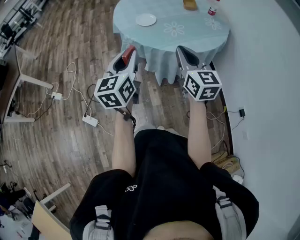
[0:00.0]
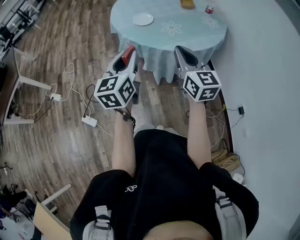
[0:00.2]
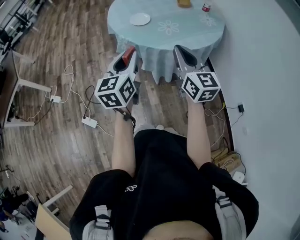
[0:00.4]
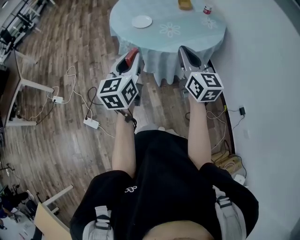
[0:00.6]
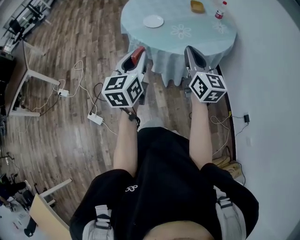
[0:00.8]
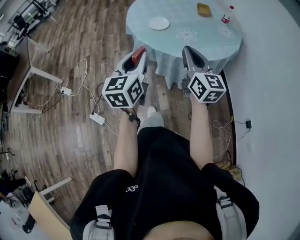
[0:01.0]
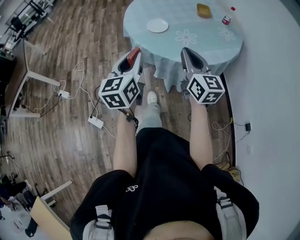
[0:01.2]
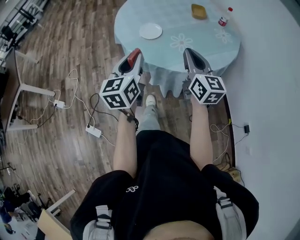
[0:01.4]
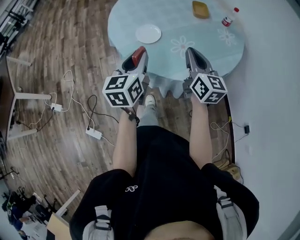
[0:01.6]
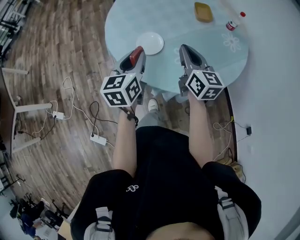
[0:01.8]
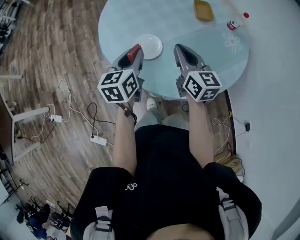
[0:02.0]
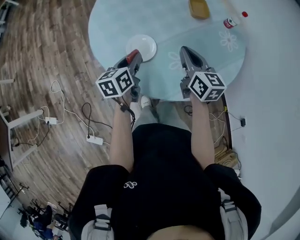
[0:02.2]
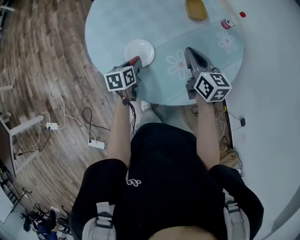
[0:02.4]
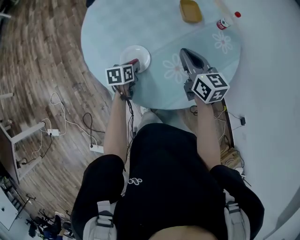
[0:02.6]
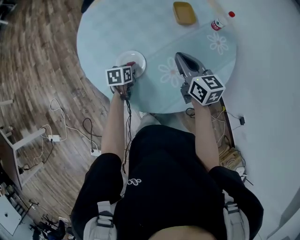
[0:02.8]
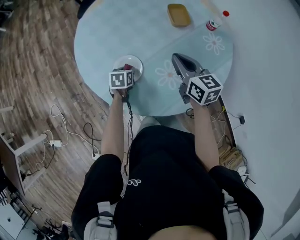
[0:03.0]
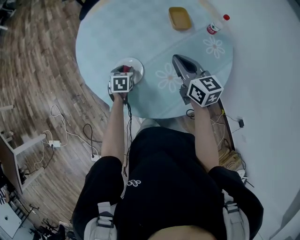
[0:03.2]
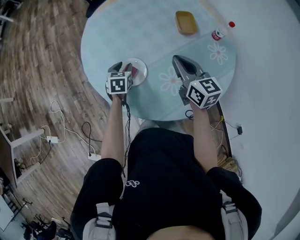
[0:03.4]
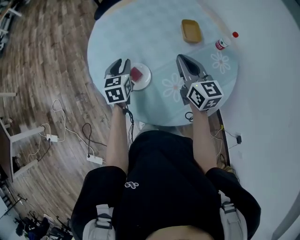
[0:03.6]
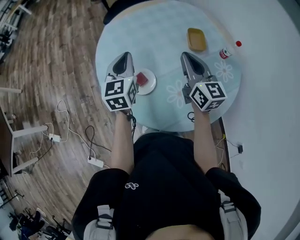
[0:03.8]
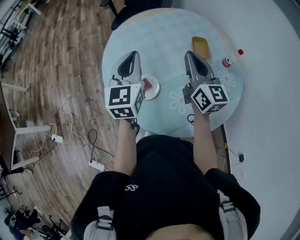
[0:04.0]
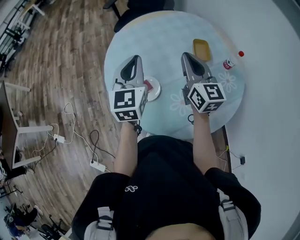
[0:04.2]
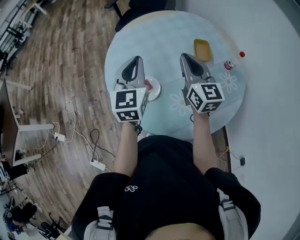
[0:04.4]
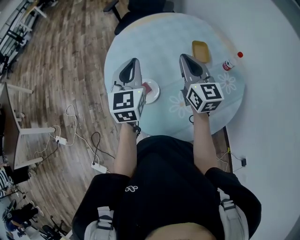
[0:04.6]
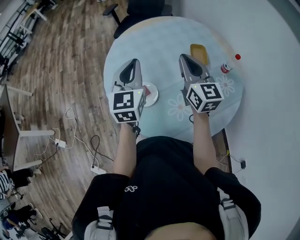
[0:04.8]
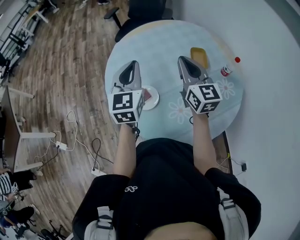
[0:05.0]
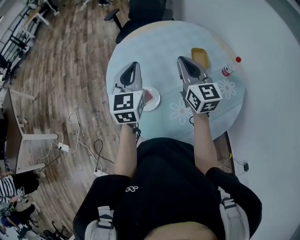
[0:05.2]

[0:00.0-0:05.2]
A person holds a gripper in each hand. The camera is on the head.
0:00.0 to 0:01.8: Both grippers travel together forward, approximately 40 cm.
0:01.8 to 0:03.4: The right gripper goes some 15 cm forward; the left gripper heads forward and downward, covering about 30 cm, and changes its angle by approximately 30 degrees.
0:03.4 to 0:05.2: The left gripper travels upward by roughly 30 cm, angles its fingers upward, by some 40 degrees, and closes up, while the right gripper goes approximately 15 cm upward and forward.

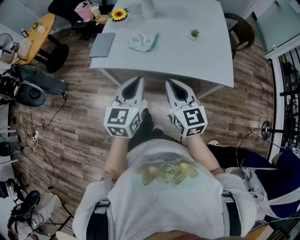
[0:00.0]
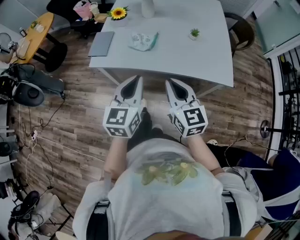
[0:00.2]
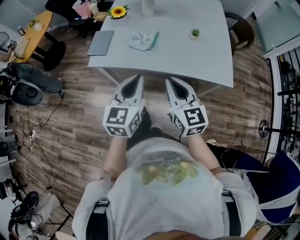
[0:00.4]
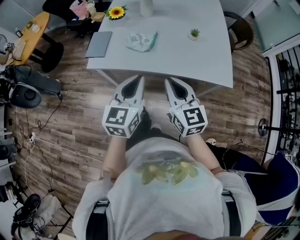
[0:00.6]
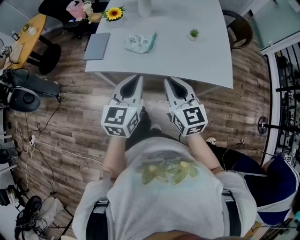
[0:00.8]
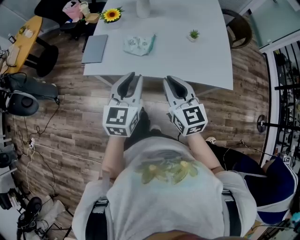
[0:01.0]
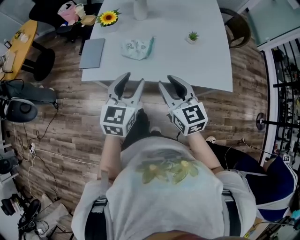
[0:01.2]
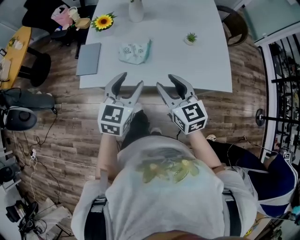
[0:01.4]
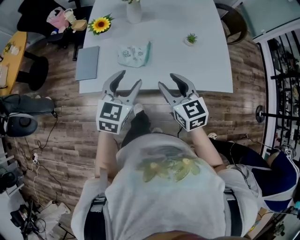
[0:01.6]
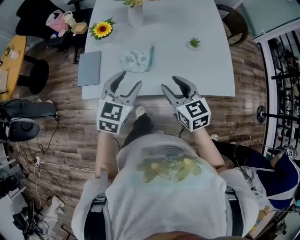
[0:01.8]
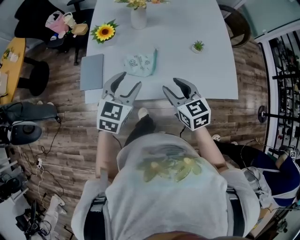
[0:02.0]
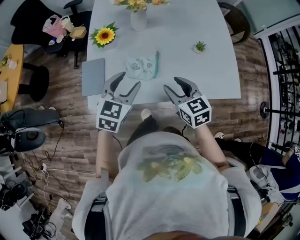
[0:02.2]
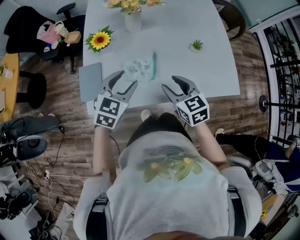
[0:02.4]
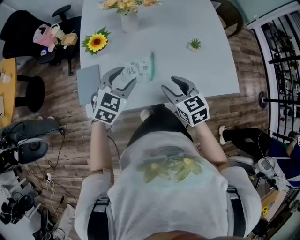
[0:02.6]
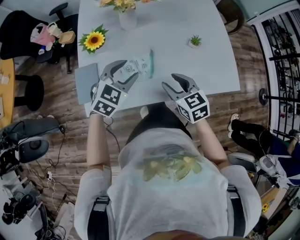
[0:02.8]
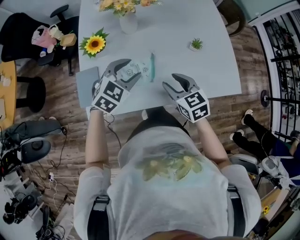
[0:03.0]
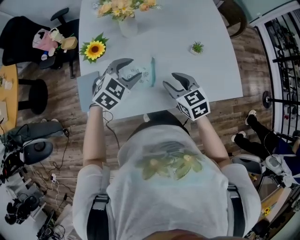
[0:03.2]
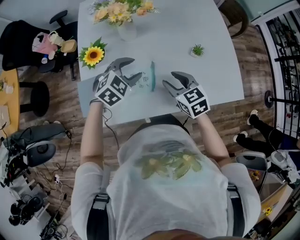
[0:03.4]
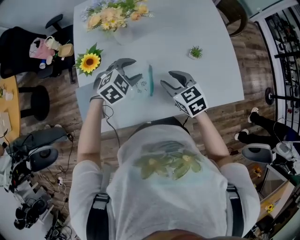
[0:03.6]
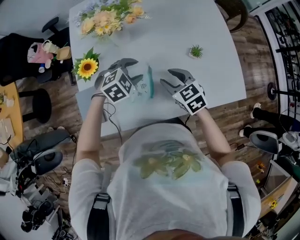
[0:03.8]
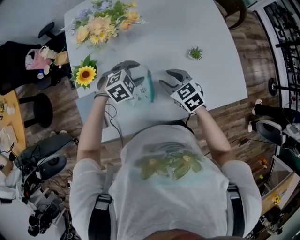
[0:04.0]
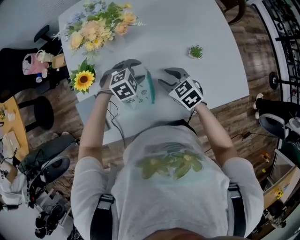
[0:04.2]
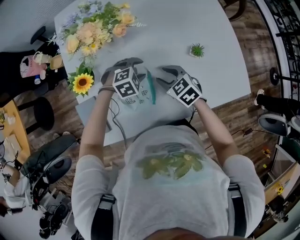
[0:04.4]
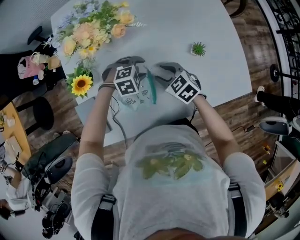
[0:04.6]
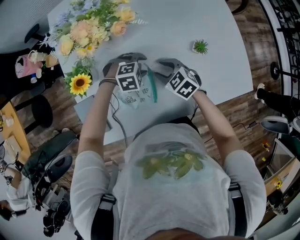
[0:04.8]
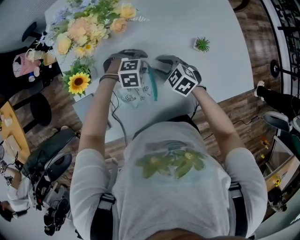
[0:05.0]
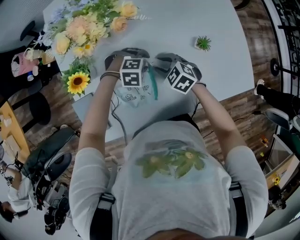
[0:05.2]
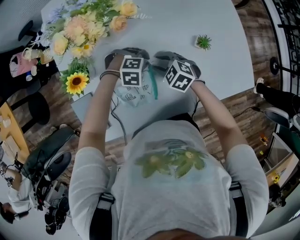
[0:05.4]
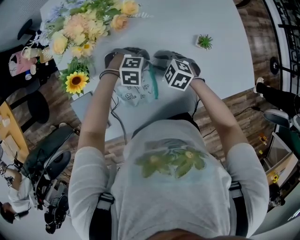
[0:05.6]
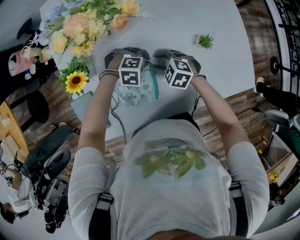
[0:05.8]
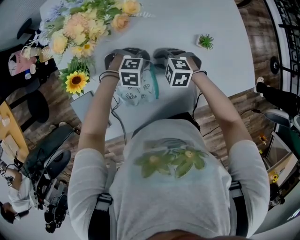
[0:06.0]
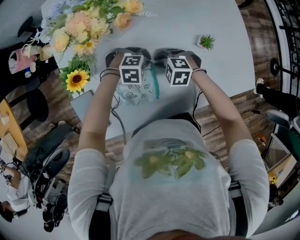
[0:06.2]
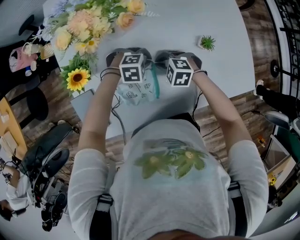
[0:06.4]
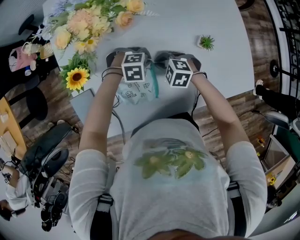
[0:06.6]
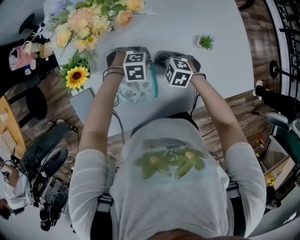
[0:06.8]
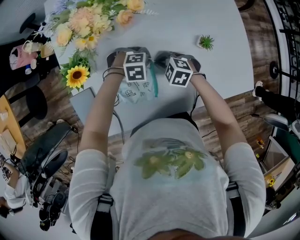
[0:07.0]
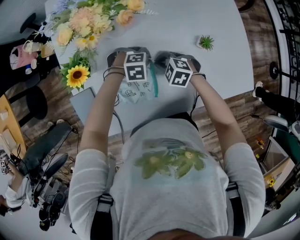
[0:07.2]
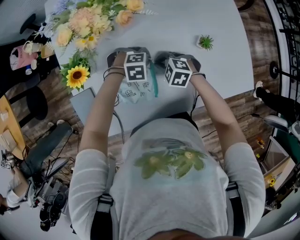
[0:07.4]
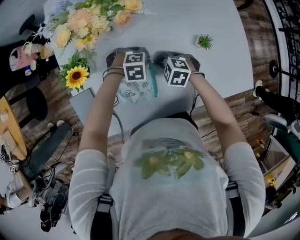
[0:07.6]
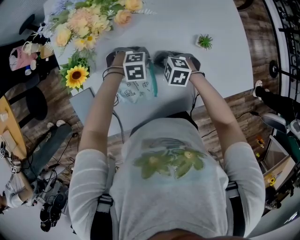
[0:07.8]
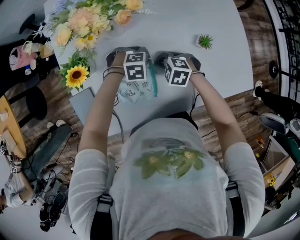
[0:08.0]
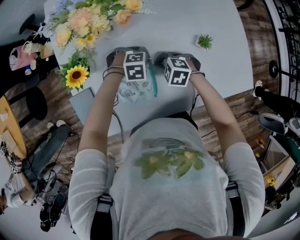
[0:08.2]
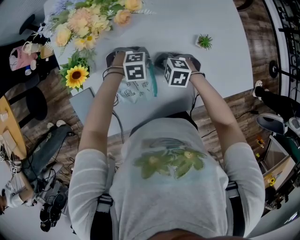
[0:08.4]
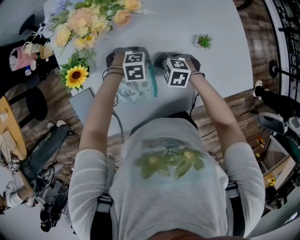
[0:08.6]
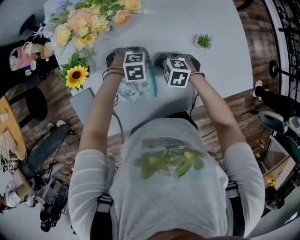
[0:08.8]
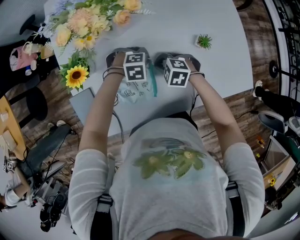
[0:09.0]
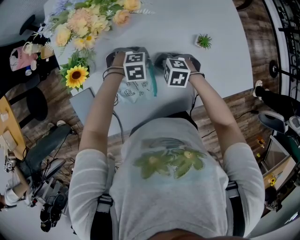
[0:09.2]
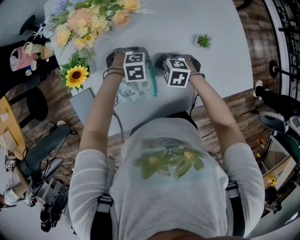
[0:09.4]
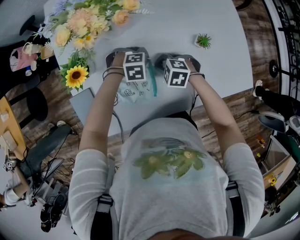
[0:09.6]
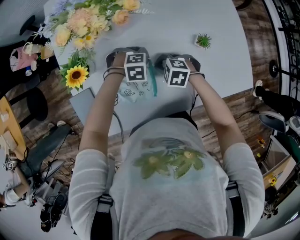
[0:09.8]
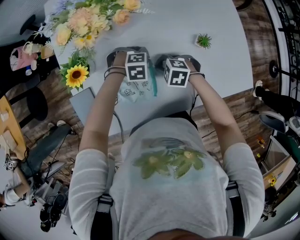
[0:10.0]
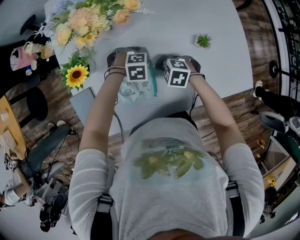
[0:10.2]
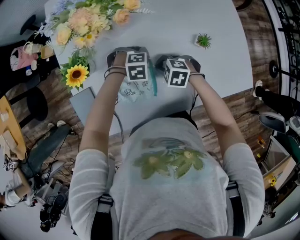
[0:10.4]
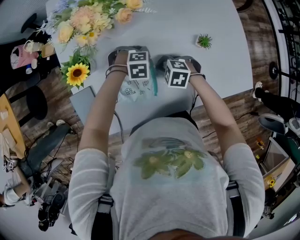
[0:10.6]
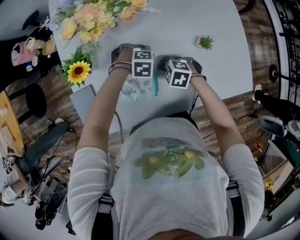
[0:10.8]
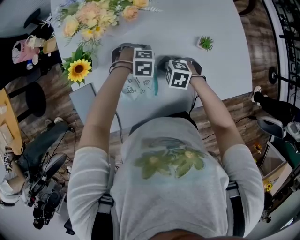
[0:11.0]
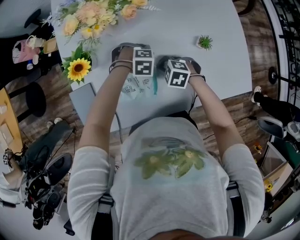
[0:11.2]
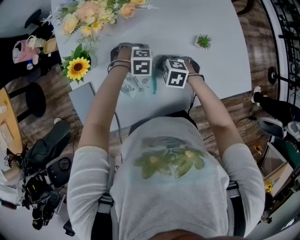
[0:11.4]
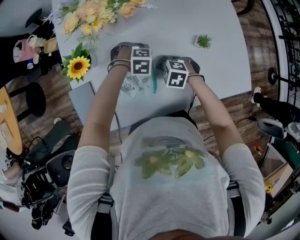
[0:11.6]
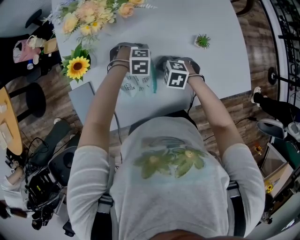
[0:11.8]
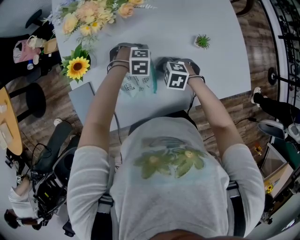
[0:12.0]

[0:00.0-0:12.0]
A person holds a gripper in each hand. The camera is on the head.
0:00.0 to 0:01.6: The grippers both shift forward by approximately 15 cm. The right gripper opens. The left gripper swivels approximately 20 degrees, and opens up.
0:01.6 to 0:03.0: The left gripper heads forward, covering about 15 cm, and turns by roughly 30 degrees. Meanwhile the right gripper heads forward and downward, covering approximately 15 cm.
0:03.0 to 0:04.4: The left gripper moves downward and forward, some 20 cm, and changes its angle by some 40 degrees. Meanwhile the right gripper goes some 15 cm forward and downward.
0:04.4 to 0:06.0: Both grippers move downward, roughly 5 cm. The right gripper turns by roughly 40 degrees, while the left gripper rotates approximately 20 degrees, and closes up.
0:06.0 to 0:07.6: The right gripper closes up.
0:07.6 to 0:09.0: The two grippers keep their place.
0:09.0 to 0:10.4: The two grippers keep their place.
0:10.4 to 0:12.0: The grippers move only a little.

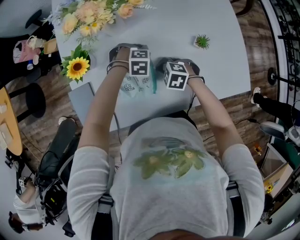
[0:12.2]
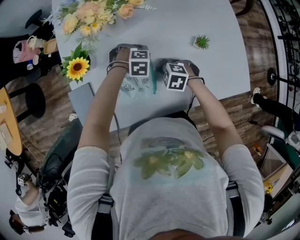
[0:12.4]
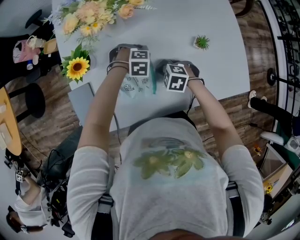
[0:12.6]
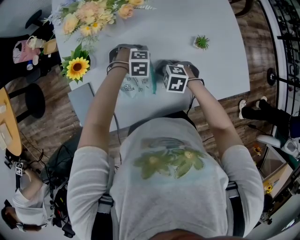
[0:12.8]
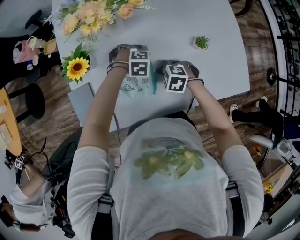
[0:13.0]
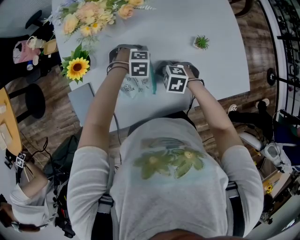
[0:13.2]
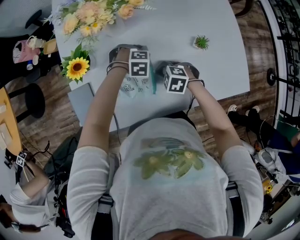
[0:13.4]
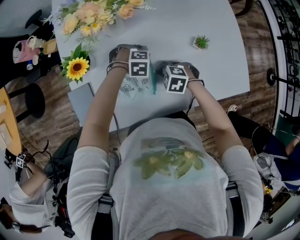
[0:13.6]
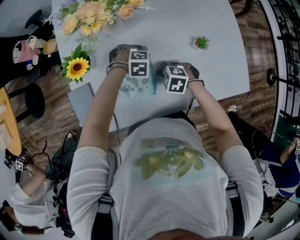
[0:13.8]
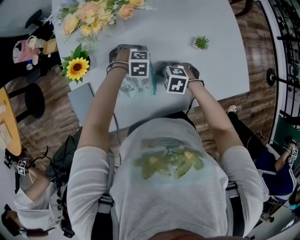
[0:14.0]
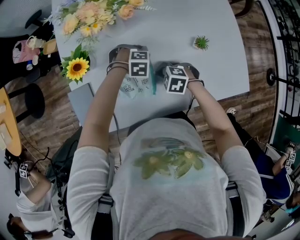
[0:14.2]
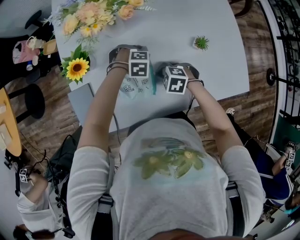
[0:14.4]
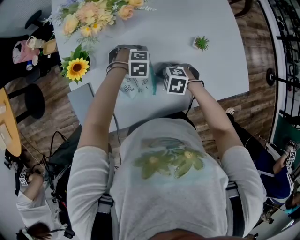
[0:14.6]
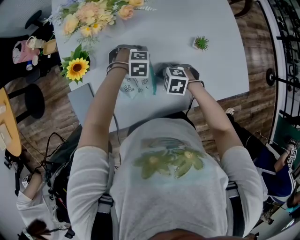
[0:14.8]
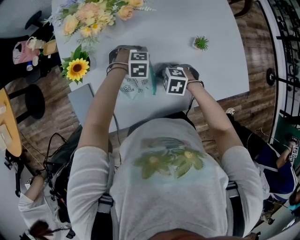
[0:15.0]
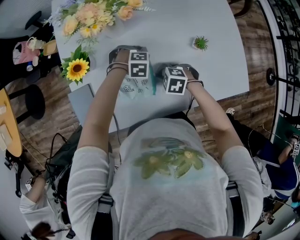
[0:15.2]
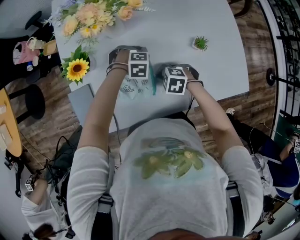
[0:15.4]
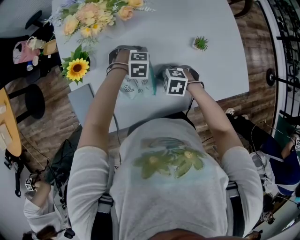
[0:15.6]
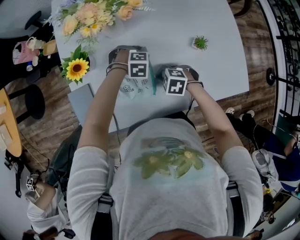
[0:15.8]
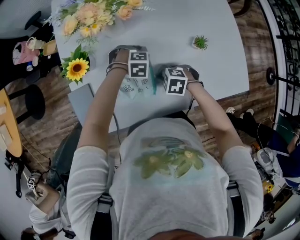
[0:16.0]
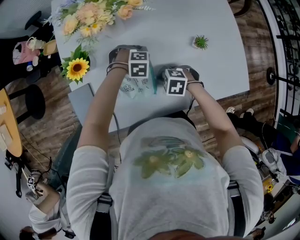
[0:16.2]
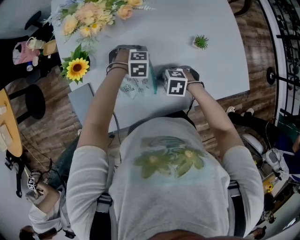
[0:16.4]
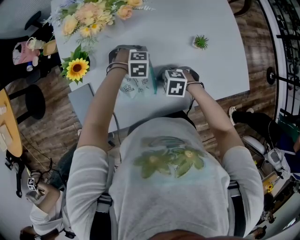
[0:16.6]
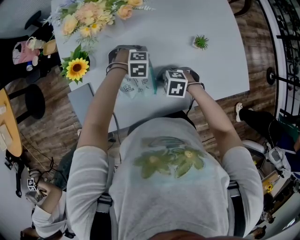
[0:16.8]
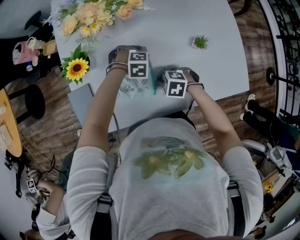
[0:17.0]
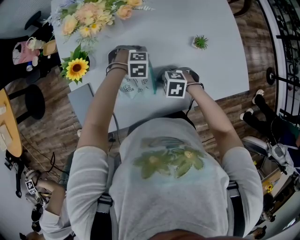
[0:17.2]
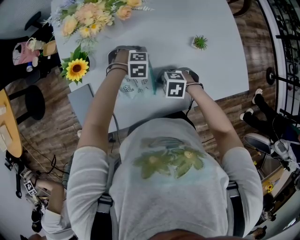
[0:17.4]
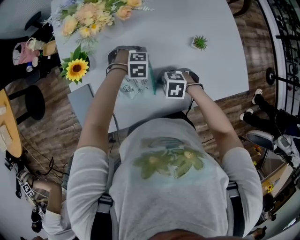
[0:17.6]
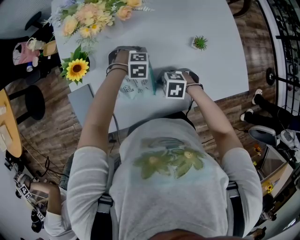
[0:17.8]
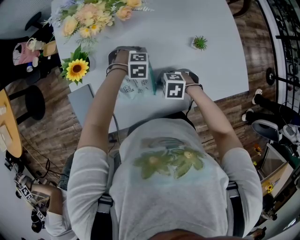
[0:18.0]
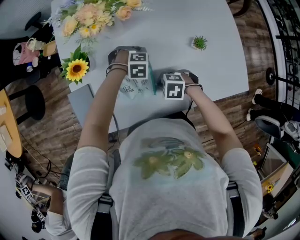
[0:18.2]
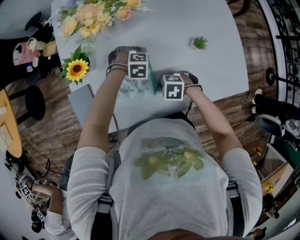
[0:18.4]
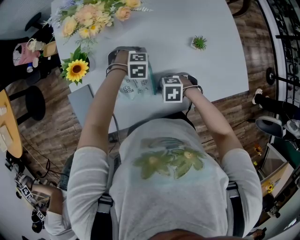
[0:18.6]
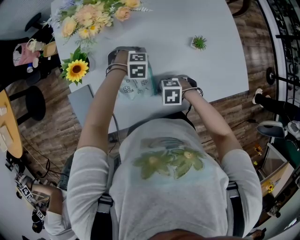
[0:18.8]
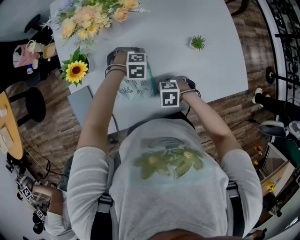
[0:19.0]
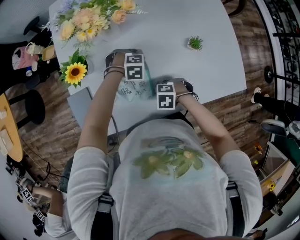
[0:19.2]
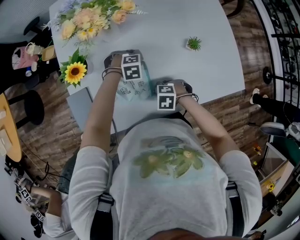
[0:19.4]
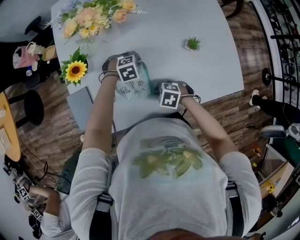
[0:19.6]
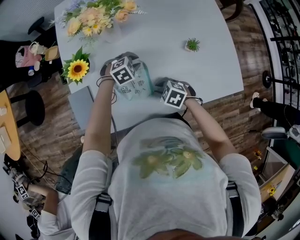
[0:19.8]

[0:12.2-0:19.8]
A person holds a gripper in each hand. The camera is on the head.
0:12.2 to 0:13.8: There are only small adjustments of the grippers.
0:13.8 to 0:15.2: The two grippers keep their place.
0:15.2 to 0:18.2: There are only small adjustments of the grippers.
0:18.2 to 0:19.8: The left gripper swivels about 30 degrees.
